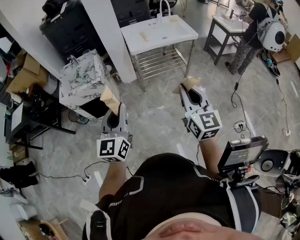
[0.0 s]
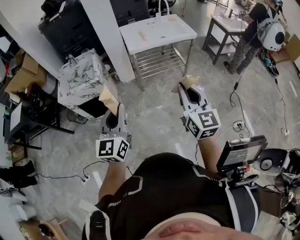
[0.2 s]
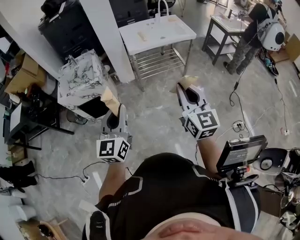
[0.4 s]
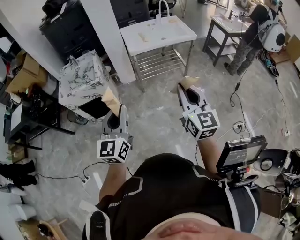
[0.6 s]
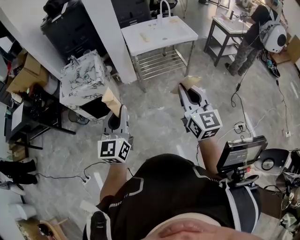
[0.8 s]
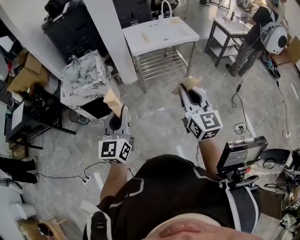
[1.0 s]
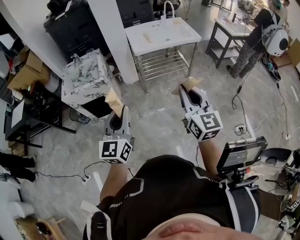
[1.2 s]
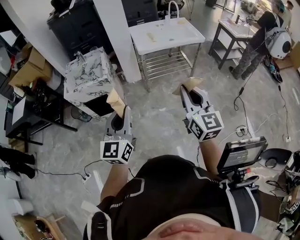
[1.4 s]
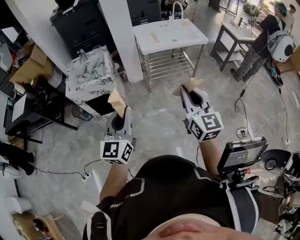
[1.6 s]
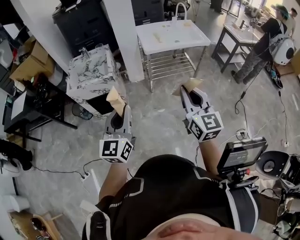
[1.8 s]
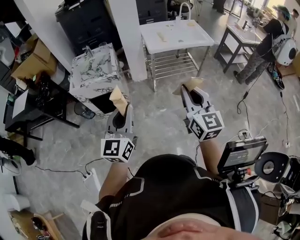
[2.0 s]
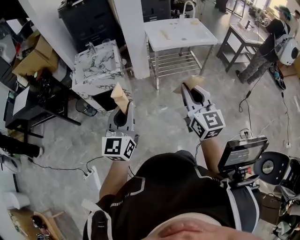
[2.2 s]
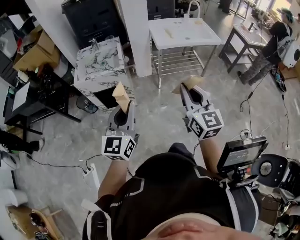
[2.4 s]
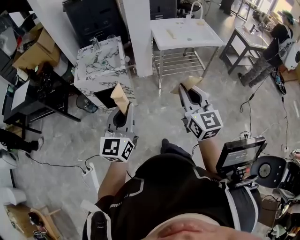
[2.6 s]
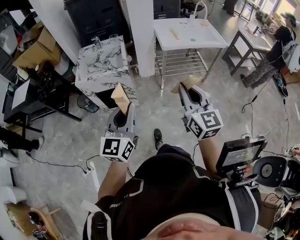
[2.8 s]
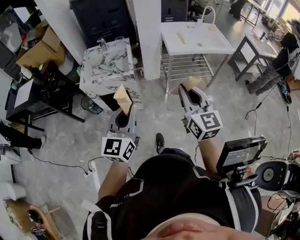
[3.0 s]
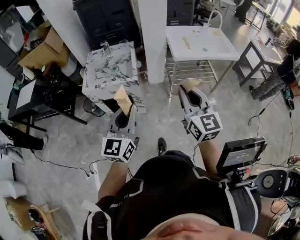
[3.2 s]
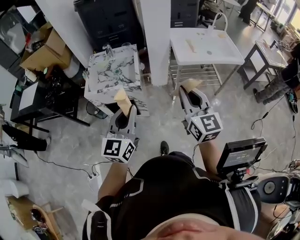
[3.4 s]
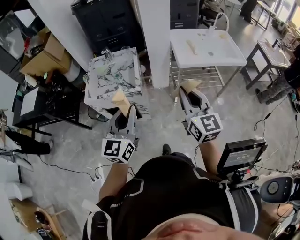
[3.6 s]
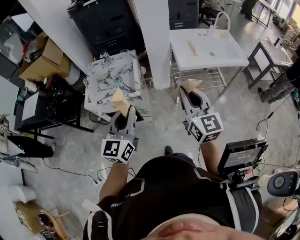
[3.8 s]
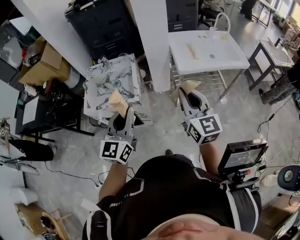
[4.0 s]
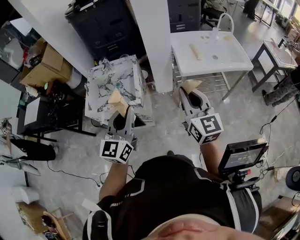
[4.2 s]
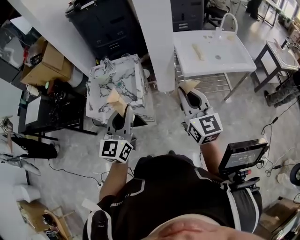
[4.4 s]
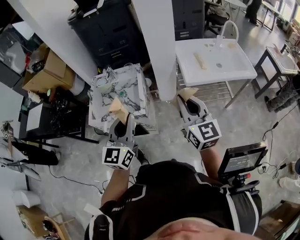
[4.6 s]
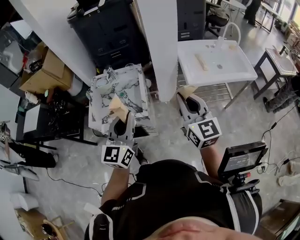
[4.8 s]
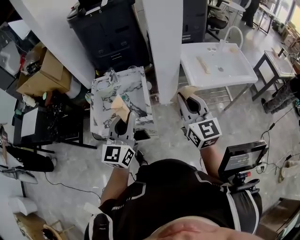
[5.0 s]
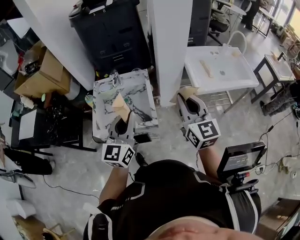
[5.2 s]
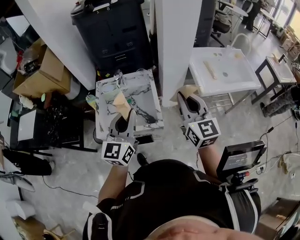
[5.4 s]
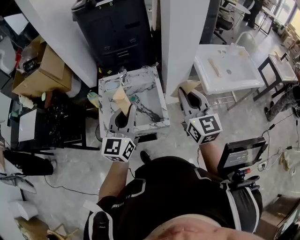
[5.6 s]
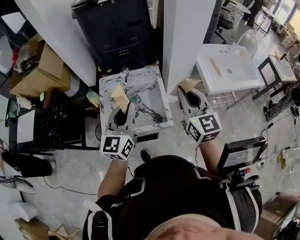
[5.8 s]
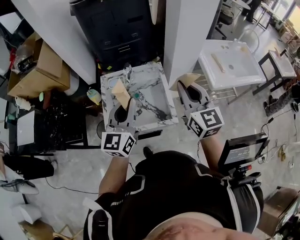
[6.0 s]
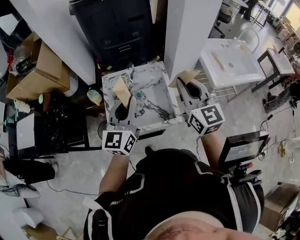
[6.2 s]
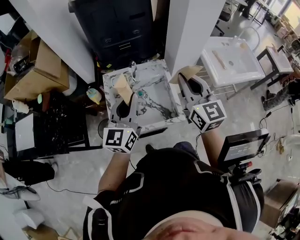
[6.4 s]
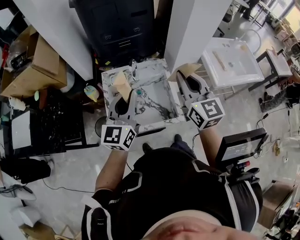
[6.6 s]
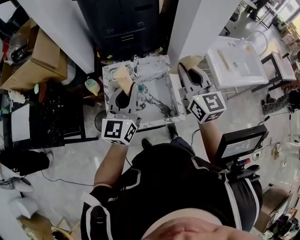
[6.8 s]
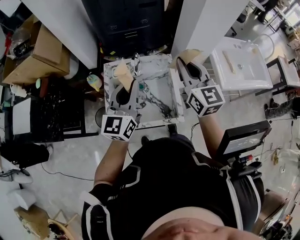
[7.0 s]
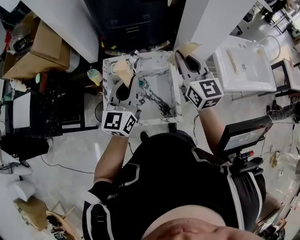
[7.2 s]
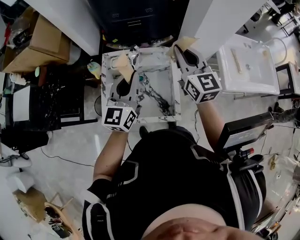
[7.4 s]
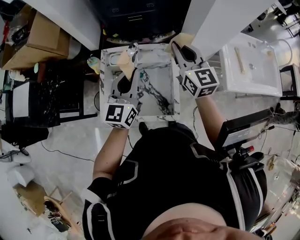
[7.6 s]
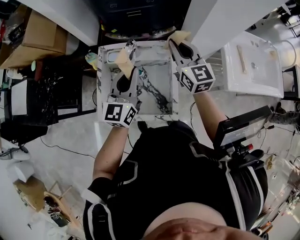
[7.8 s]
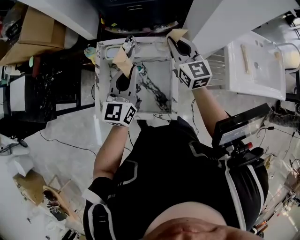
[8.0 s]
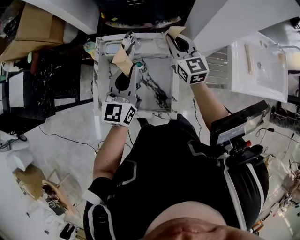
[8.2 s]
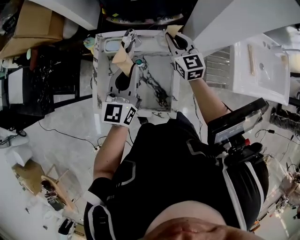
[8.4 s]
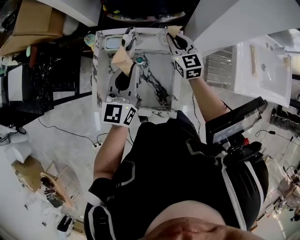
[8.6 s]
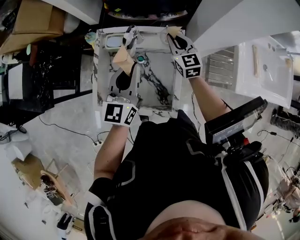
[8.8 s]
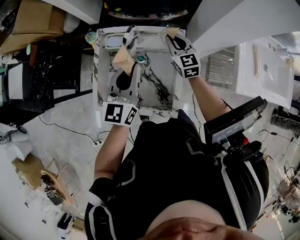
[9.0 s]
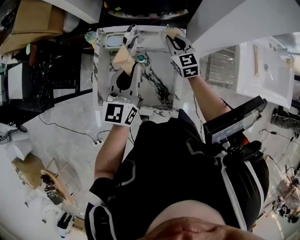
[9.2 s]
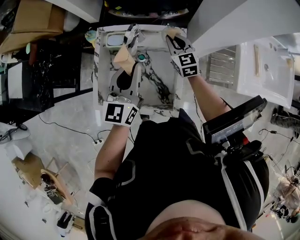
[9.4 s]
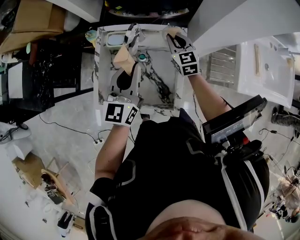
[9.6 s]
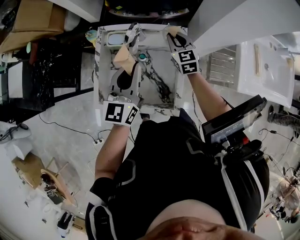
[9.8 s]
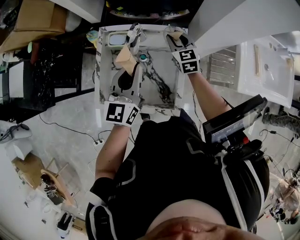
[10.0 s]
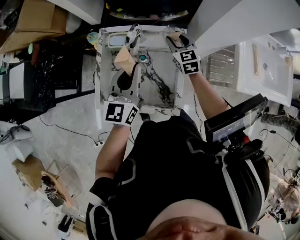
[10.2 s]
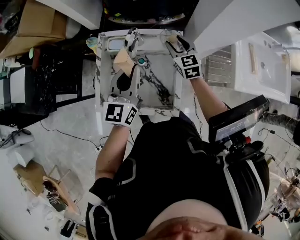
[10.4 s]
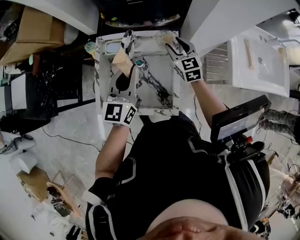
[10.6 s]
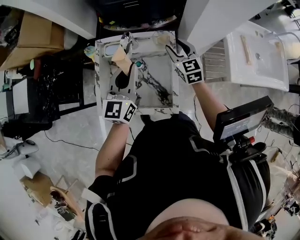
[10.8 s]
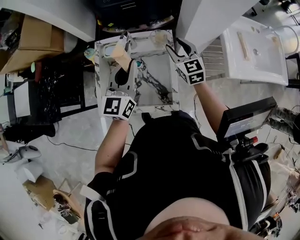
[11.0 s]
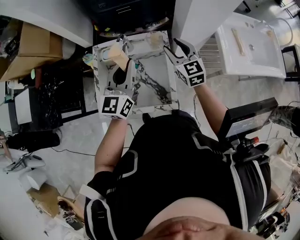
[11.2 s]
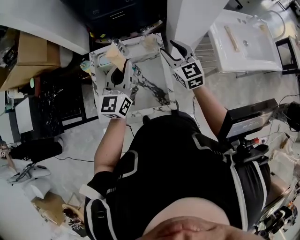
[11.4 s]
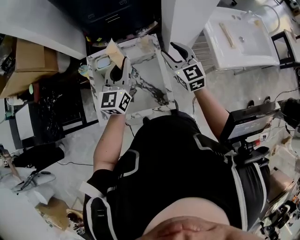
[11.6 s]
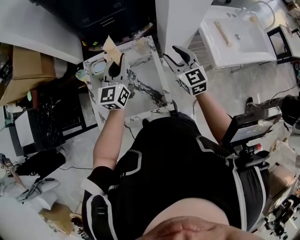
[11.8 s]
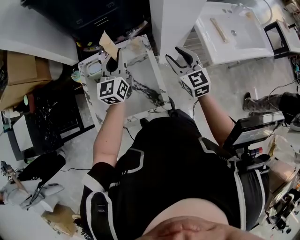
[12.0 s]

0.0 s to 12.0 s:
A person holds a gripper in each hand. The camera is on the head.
0.0 to 1.6 s: Both grippers travel together to the left, roughly 5 cm.
1.6 to 3.0 s: Both grippers travel together to the left and forward, about 15 cm.
3.0 to 4.4 s: Both grippers travel together forward, roughly 25 cm.
4.4 to 6.0 s: Both grippers move to the left and forward, roughly 30 cm.
6.0 to 7.6 s: The left gripper travels forward and downward by approximately 15 cm. Meanwhile the right gripper shifts approximately 20 cm forward.
7.6 to 9.0 s: The right gripper travels downward by some 20 cm, while the left gripper moves downward, approximately 5 cm.
9.0 to 10.4 s: The right gripper opens its fingers.
10.4 to 12.0 s: The left gripper travels forward and to the right by about 10 cm. The right gripper moves backward, to the right and upward, approximately 20 cm.

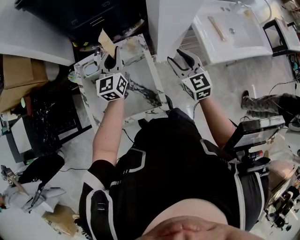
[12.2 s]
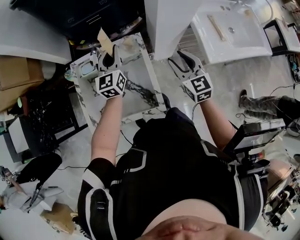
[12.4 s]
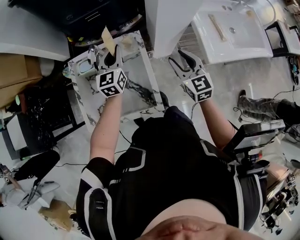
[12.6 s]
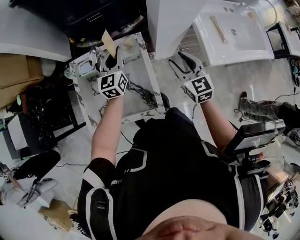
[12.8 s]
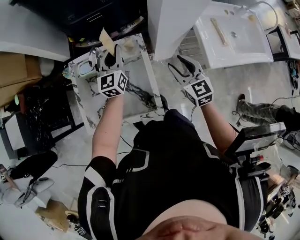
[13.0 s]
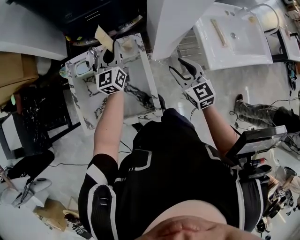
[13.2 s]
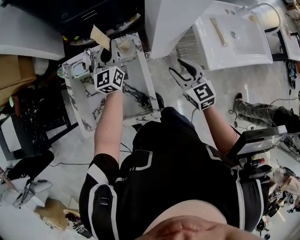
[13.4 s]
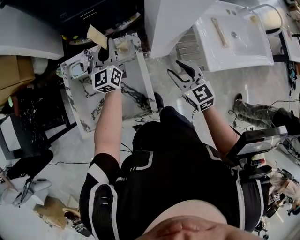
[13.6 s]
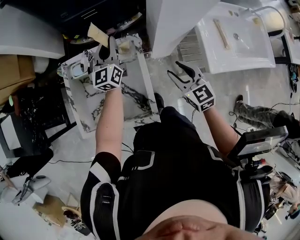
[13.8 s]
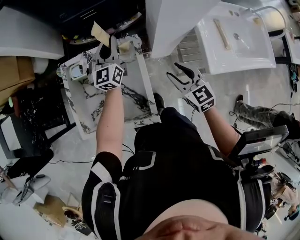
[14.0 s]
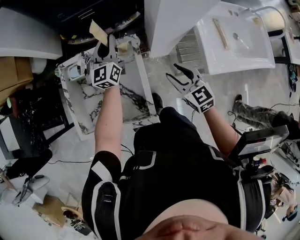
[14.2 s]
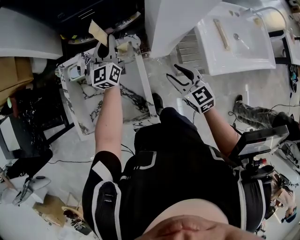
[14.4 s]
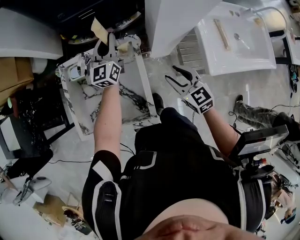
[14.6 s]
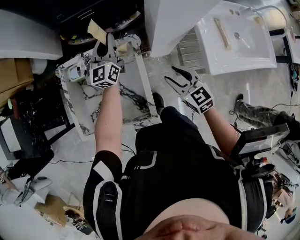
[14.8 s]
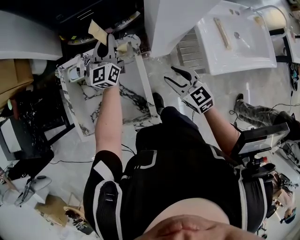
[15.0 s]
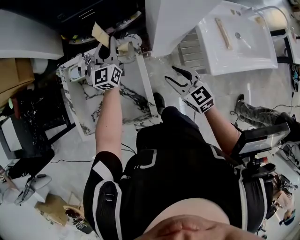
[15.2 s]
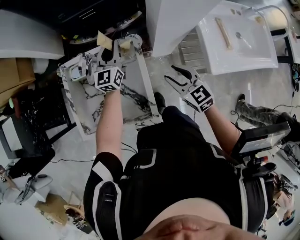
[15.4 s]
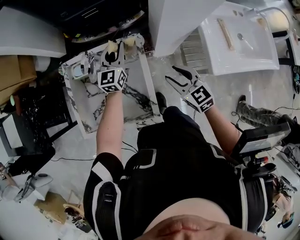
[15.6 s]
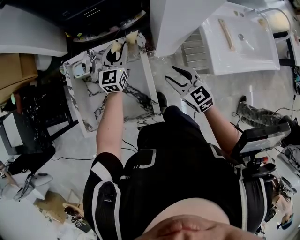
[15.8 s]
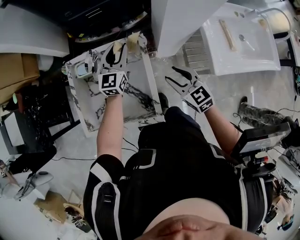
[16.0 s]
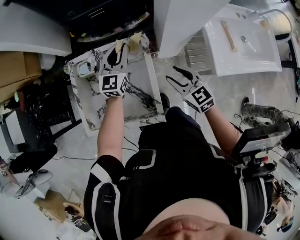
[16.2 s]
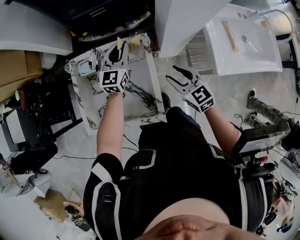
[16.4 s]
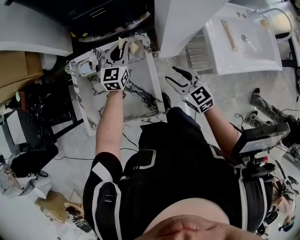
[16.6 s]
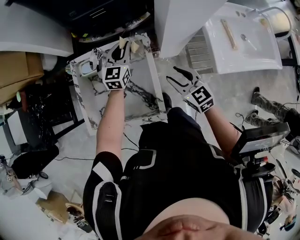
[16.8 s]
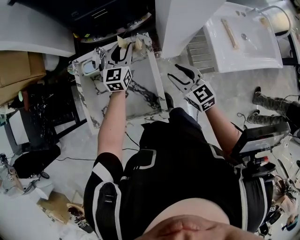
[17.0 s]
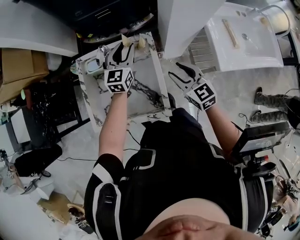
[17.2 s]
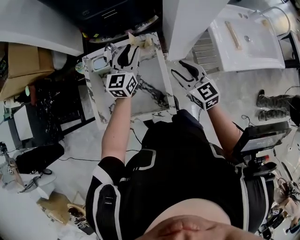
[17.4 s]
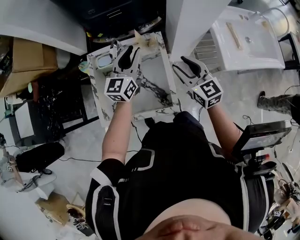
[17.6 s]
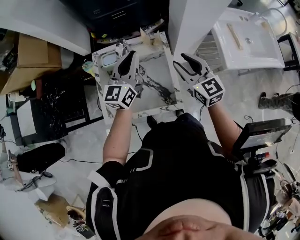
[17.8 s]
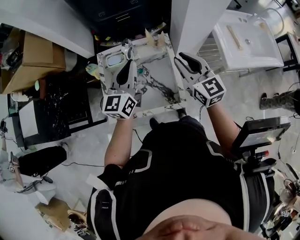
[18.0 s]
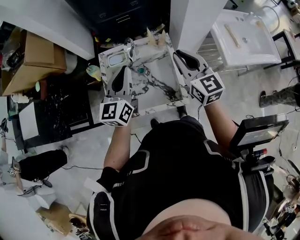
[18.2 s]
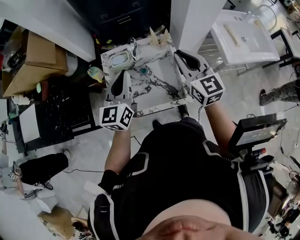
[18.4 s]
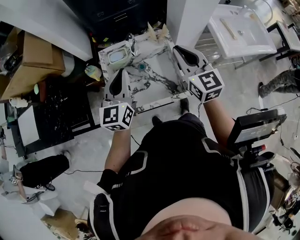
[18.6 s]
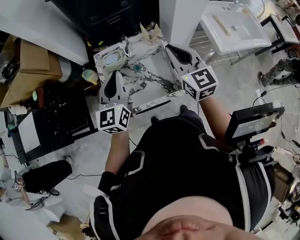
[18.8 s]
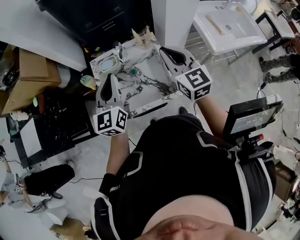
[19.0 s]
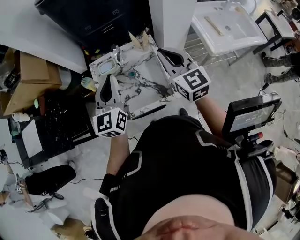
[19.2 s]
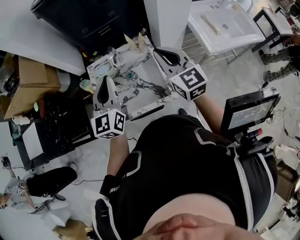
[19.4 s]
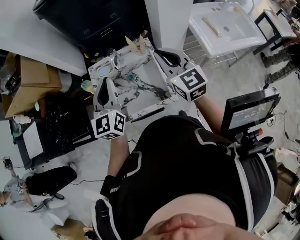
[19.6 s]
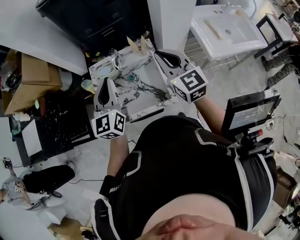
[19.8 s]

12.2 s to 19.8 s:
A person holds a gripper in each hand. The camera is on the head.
12.2 to 13.8 s: The right gripper goes roughly 5 cm downward. The left gripper goes roughly 10 cm forward and downward.
13.8 to 15.2 s: There are only small adjustments of the grippers.
15.2 to 16.8 s: There are only small adjustments of the grippers.
16.8 to 18.2 s: The left gripper goes roughly 30 cm backward, upward and to the left, and opens, then closes once more. The right gripper heads upward and to the left, covering approximately 20 cm, rotates about 20 degrees, and closes.
18.2 to 19.8 s: The grippers move only a little.

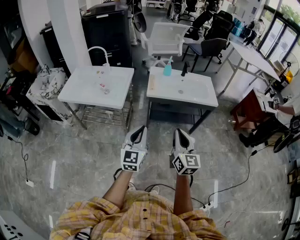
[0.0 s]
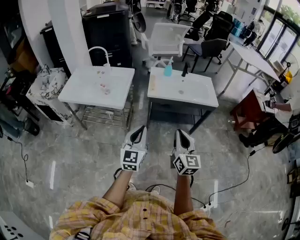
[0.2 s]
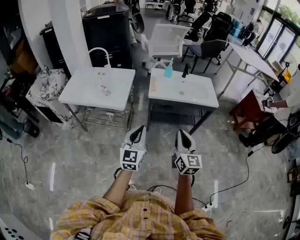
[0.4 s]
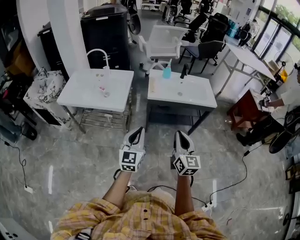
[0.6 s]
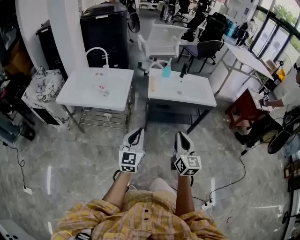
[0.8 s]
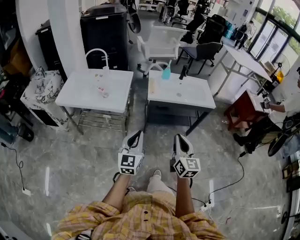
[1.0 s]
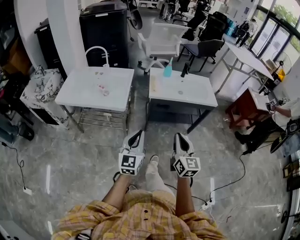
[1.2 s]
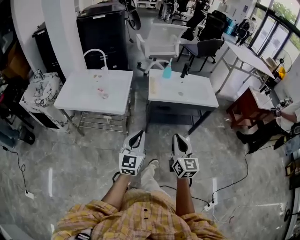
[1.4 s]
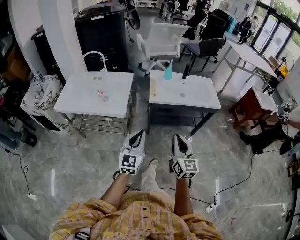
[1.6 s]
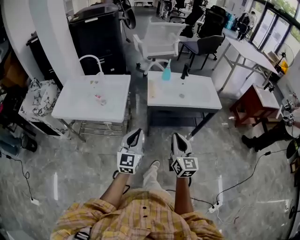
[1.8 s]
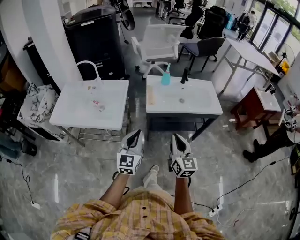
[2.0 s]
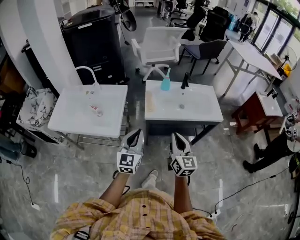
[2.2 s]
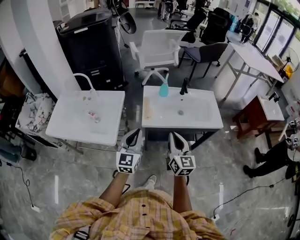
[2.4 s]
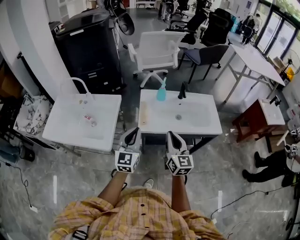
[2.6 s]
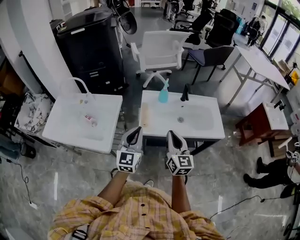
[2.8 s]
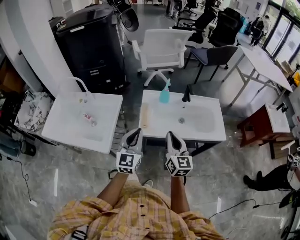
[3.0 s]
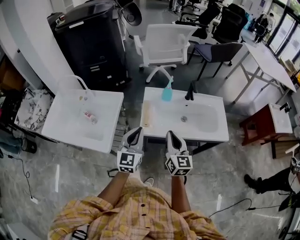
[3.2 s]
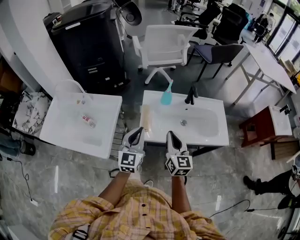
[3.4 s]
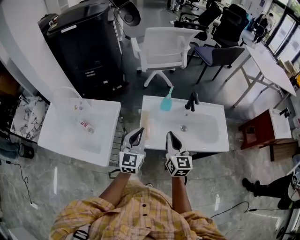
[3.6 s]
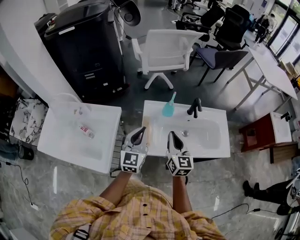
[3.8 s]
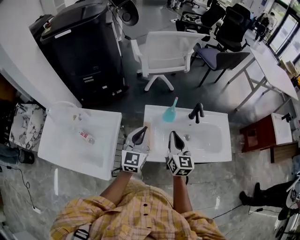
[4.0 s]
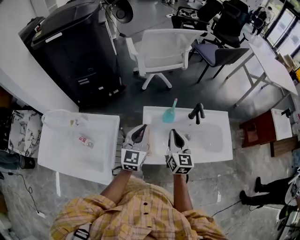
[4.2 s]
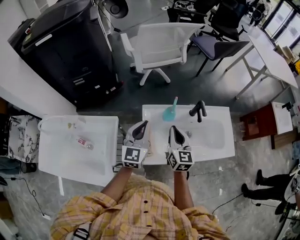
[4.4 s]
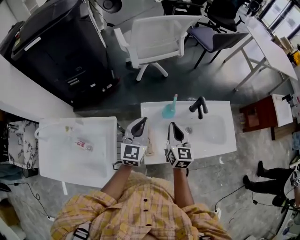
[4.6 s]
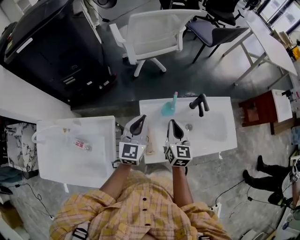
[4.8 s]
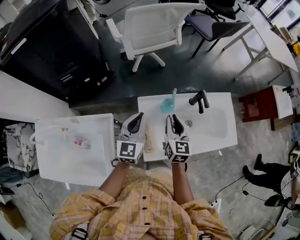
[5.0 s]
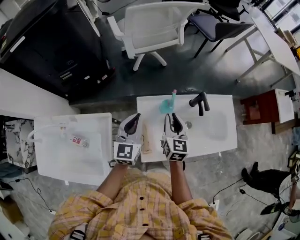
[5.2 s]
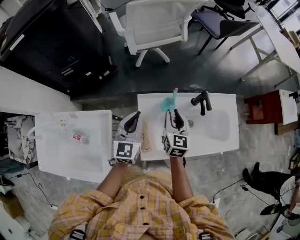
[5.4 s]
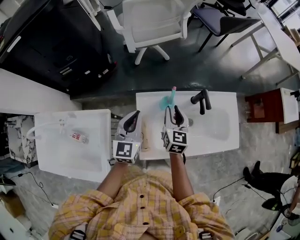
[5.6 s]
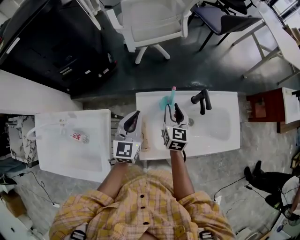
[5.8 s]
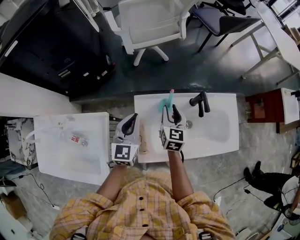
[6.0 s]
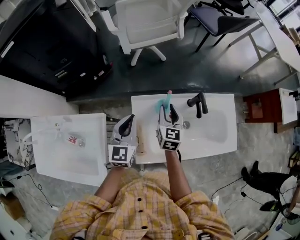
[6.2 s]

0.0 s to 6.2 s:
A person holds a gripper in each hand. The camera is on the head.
0.0 to 1.6 s: Both grippers travel together to the left, roughly 5 cm.
1.6 to 3.2 s: The grippers both shift forward by roughly 35 cm.
3.2 to 4.6 s: Both grippers move forward, roughly 25 cm.
4.6 to 6.2 s: The left gripper changes place by about 5 cm. Meanwhile the right gripper moves forward and downward, approximately 15 cm, and opens.
